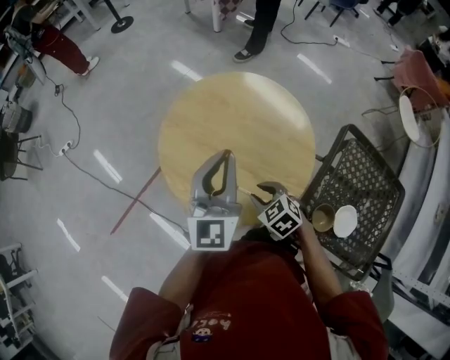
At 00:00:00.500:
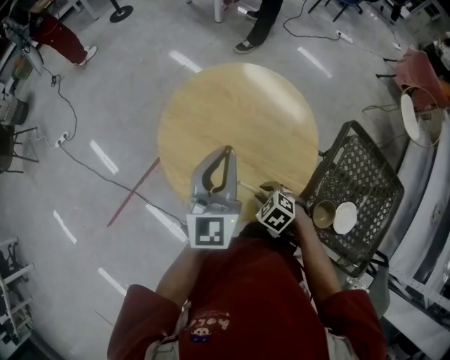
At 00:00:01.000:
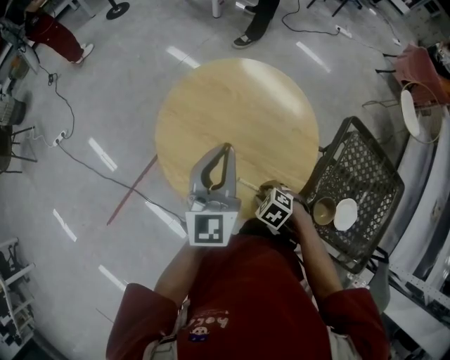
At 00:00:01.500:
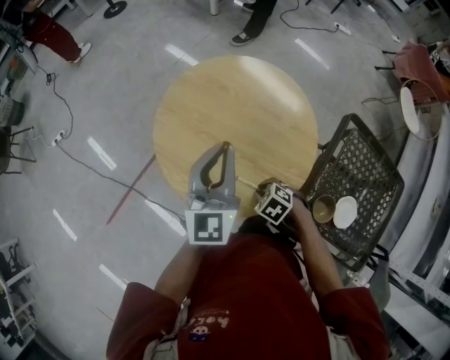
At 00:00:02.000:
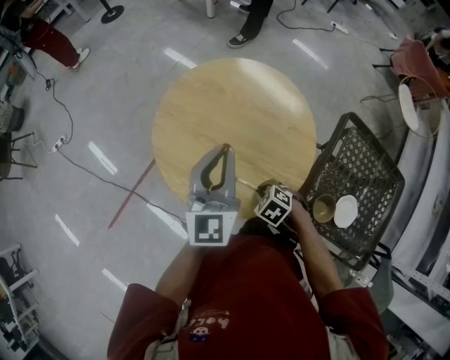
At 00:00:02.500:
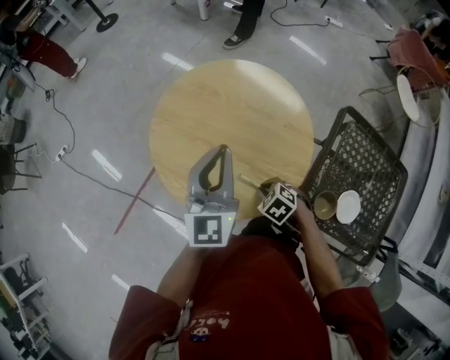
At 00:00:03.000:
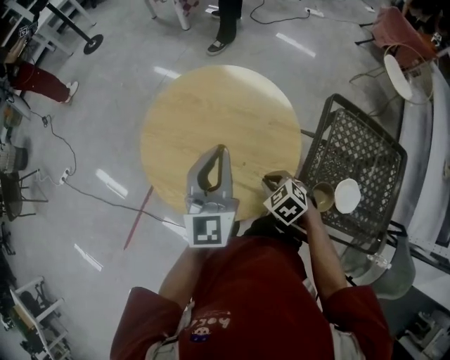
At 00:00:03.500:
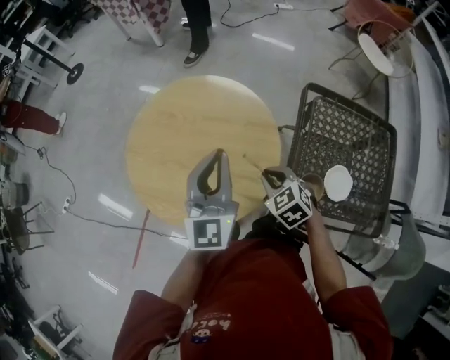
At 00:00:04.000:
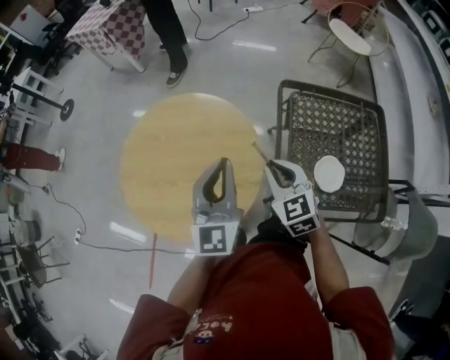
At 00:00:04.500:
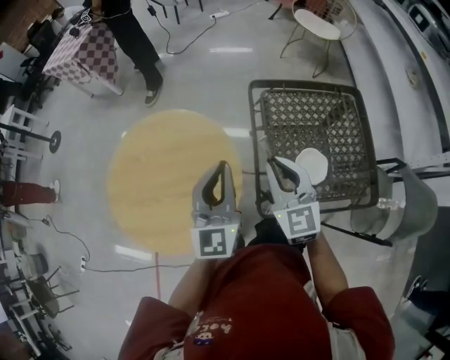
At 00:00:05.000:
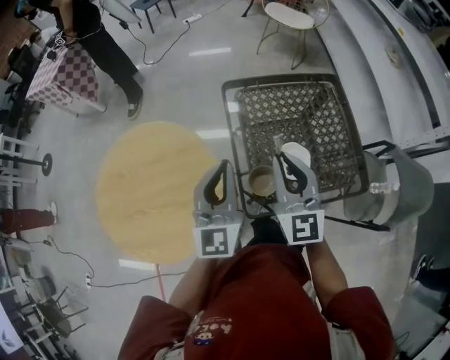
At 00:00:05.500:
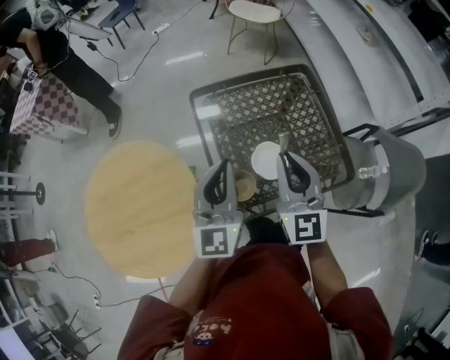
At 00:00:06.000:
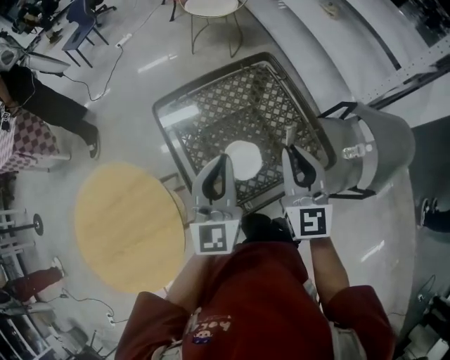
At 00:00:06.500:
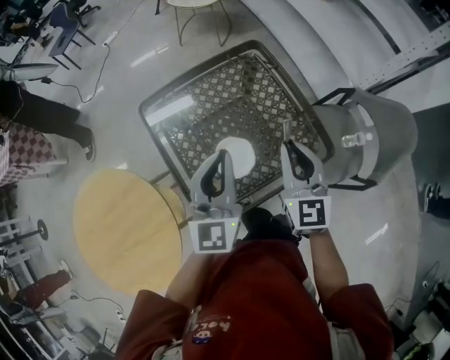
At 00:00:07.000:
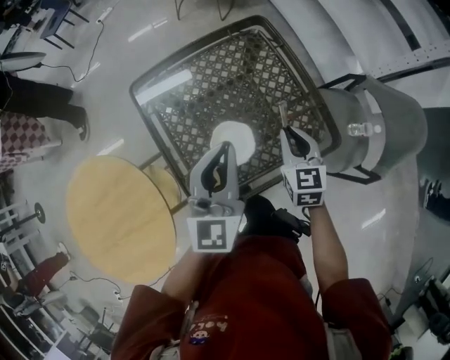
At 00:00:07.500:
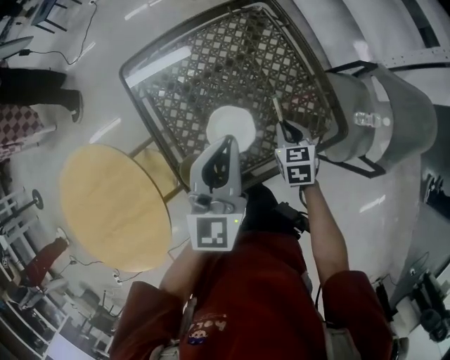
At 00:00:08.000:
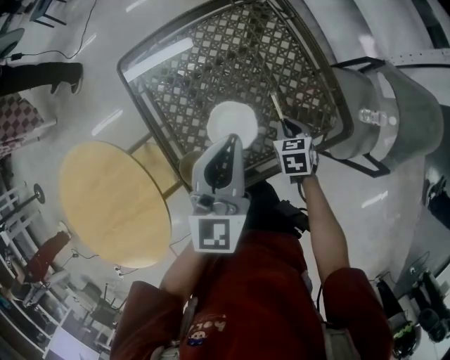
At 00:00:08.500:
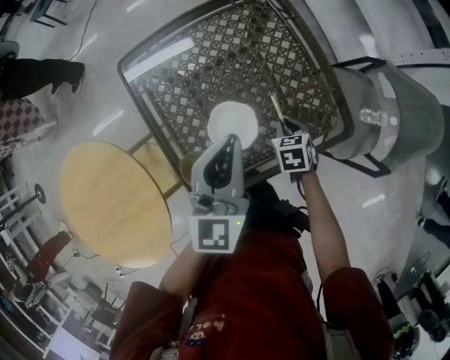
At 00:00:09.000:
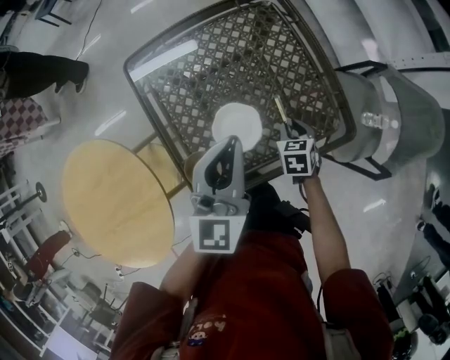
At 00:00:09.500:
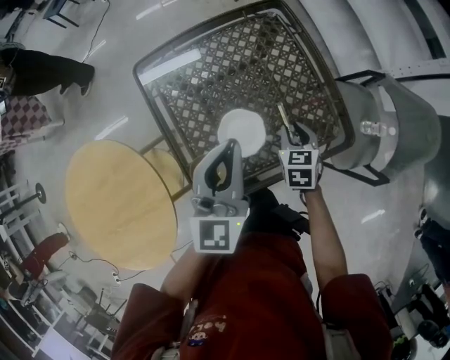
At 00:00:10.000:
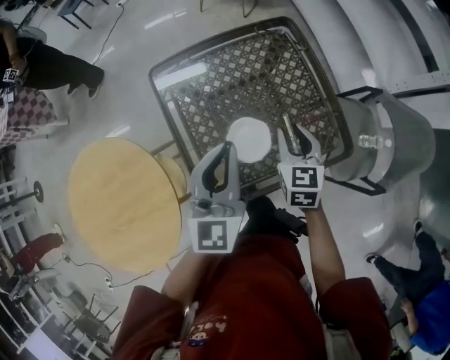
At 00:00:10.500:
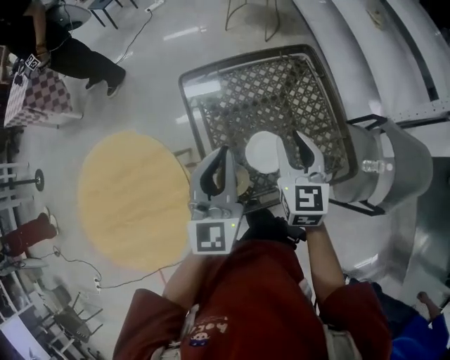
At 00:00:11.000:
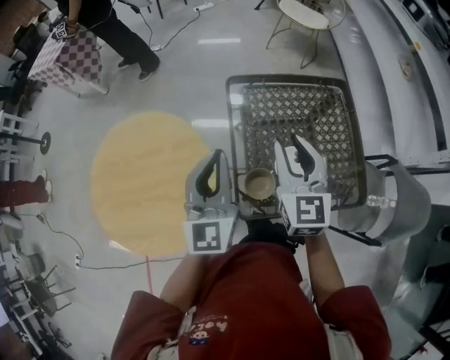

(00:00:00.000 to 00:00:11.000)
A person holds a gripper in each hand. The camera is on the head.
00:00:00.000 - 00:00:02.000: The right gripper goes approximately 5 cm downward.
00:00:02.000 - 00:00:03.500: The left gripper ends up some 15 cm from where it was. Meanwhile the right gripper shifts approximately 15 cm upward, and swivels about 40 degrees.
00:00:03.500 - 00:00:05.500: The left gripper changes place by roughly 30 cm, and turns by some 30 degrees. Meanwhile the right gripper moves approximately 40 cm, and points its fingers roughly 50 degrees further upward.
00:00:05.500 - 00:00:07.500: The left gripper moves to the right, downward and forward, some 20 cm. The right gripper goes roughly 35 cm downward and to the right, and tilts its fingers approximately 50 degrees downward.
00:00:07.500 - 00:00:09.000: There are only small adjustments of the grippers.
00:00:09.000 - 00:00:11.000: The right gripper is displaced upward by about 35 cm, and points its fingers roughly 50 degrees further upward. Meanwhile the left gripper shifts by roughly 25 cm, and turns by roughly 30 degrees.

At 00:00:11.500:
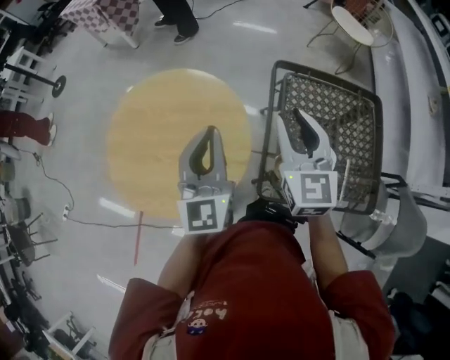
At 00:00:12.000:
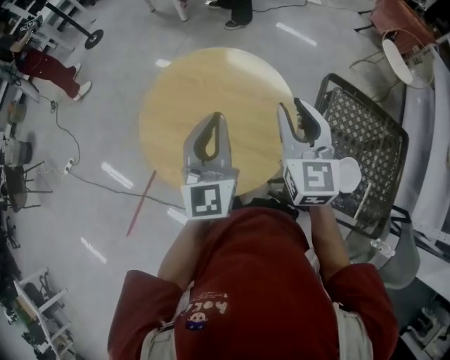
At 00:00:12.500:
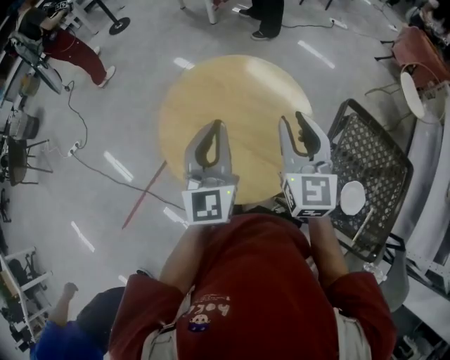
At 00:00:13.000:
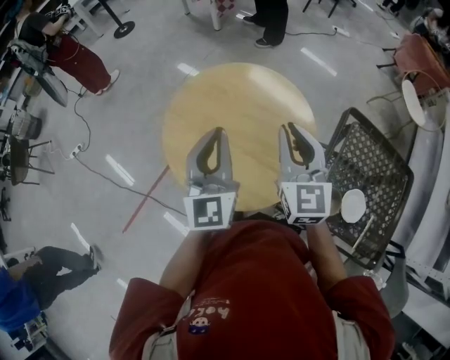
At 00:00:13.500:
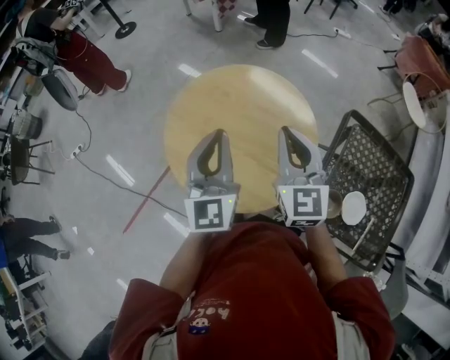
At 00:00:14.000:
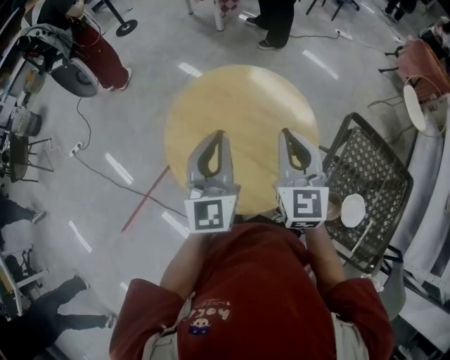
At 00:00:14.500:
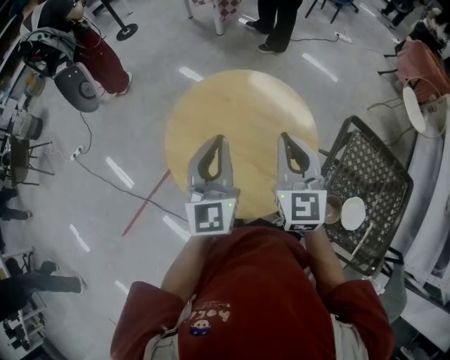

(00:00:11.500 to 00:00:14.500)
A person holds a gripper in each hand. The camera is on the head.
00:00:11.500 - 00:00:13.000: The two grippers go some 25 cm to the left. The right gripper swivels approximately 20 degrees; the left gripper turns by roughly 20 degrees.
00:00:13.000 - 00:00:14.500: The grippers make only small movements.

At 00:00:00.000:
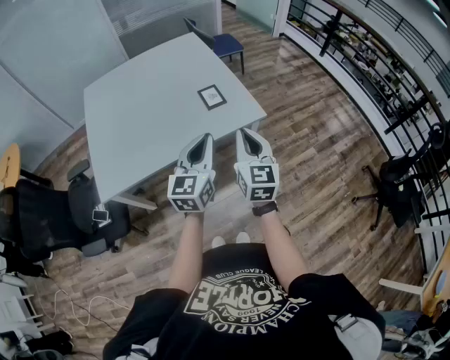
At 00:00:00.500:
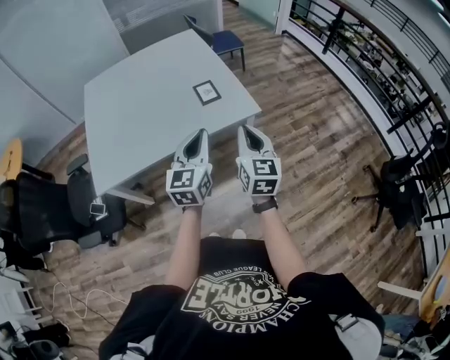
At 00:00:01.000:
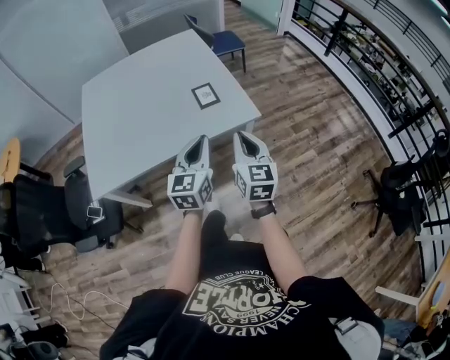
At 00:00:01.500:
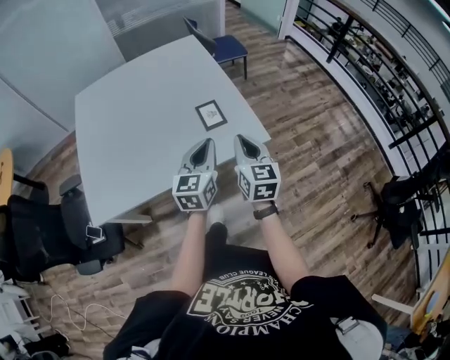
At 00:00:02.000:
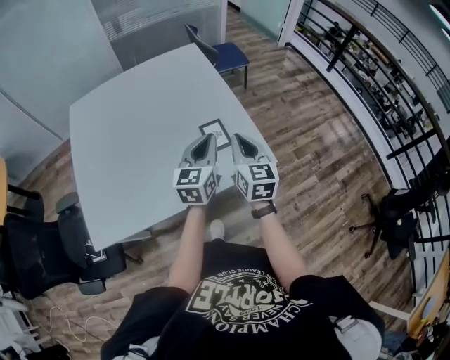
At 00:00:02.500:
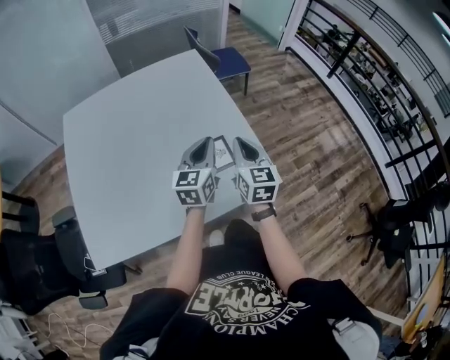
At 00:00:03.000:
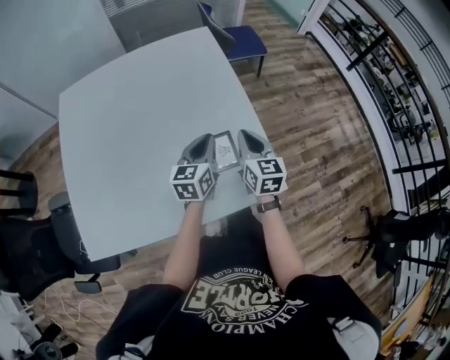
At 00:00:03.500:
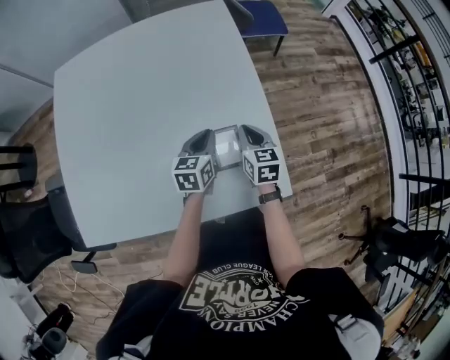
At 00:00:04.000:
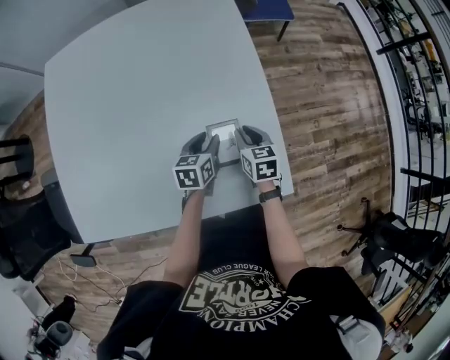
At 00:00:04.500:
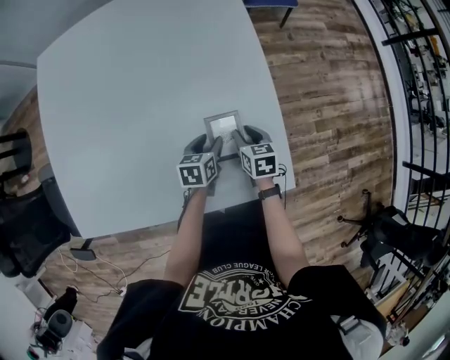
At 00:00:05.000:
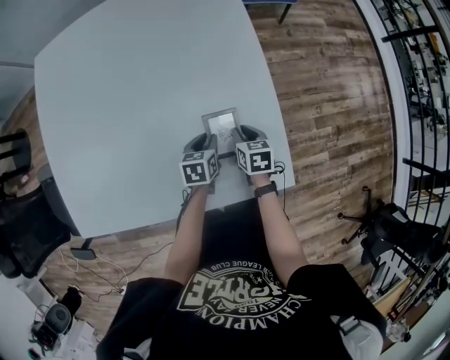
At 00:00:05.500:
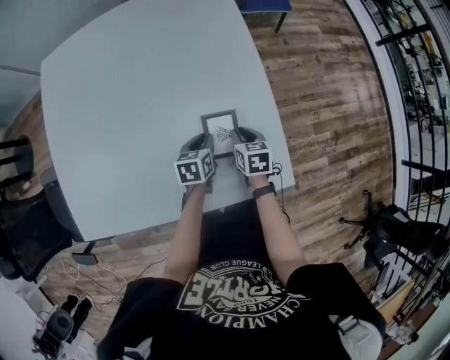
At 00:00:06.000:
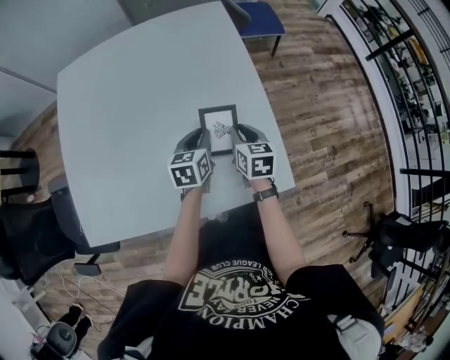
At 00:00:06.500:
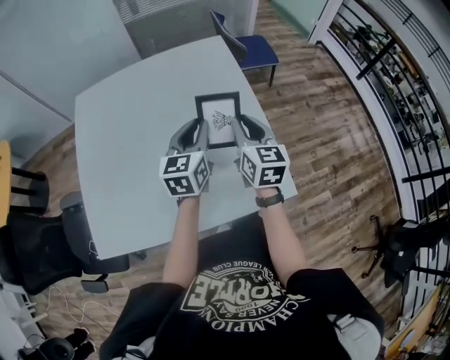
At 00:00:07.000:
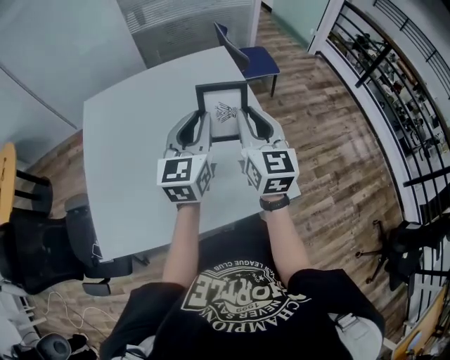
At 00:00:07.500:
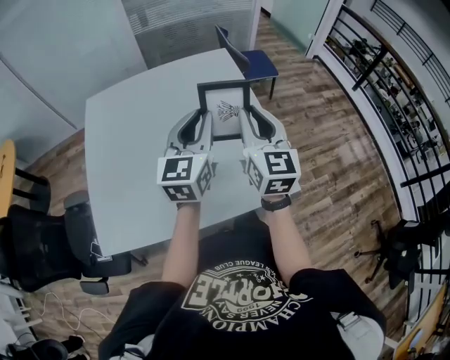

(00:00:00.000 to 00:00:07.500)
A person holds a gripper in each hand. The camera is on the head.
00:00:00.000 - 00:00:02.000: The grippers both shift forward by roughly 30 cm.
00:00:02.000 - 00:00:04.000: The left gripper goes some 40 cm downward and forward, tilts its fingers roughly 30 degrees downward, and opens its fingers. The right gripper goes about 40 cm forward and downward, points its fingers roughly 30 degrees further downward, and opens its fingers.
00:00:05.500 - 00:00:07.500: Both grippers move upward, roughly 40 cm. The right gripper tips its fingers upward by roughly 50 degrees. Meanwhile the left gripper tilts its fingers some 50 degrees upward.

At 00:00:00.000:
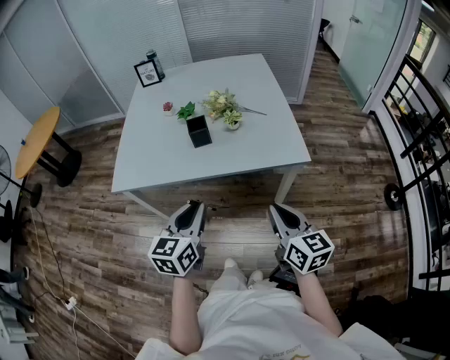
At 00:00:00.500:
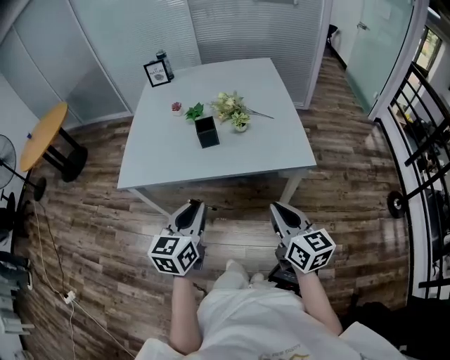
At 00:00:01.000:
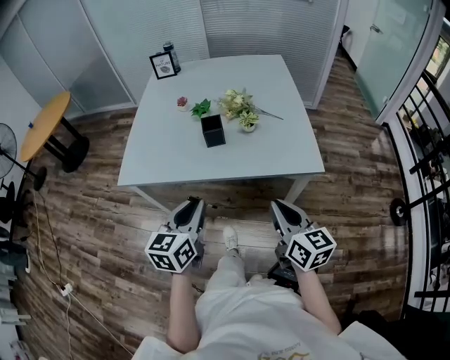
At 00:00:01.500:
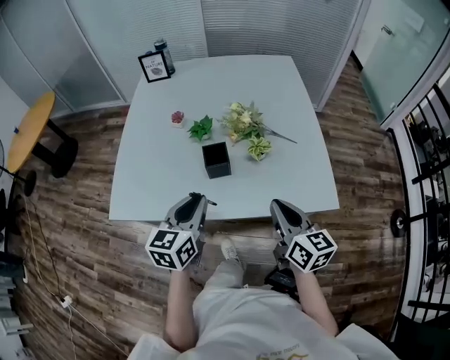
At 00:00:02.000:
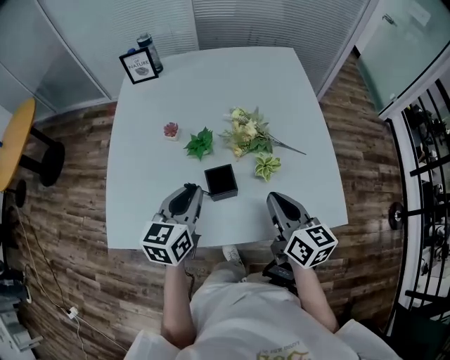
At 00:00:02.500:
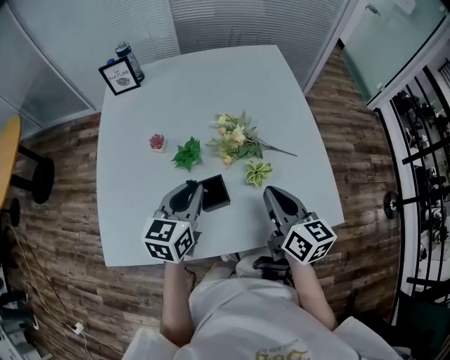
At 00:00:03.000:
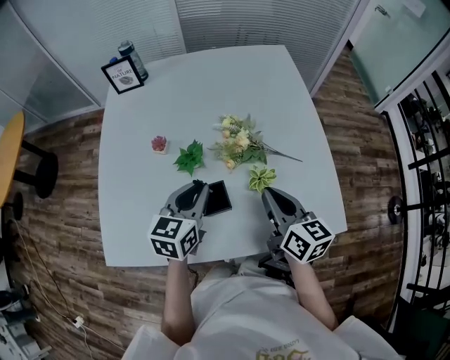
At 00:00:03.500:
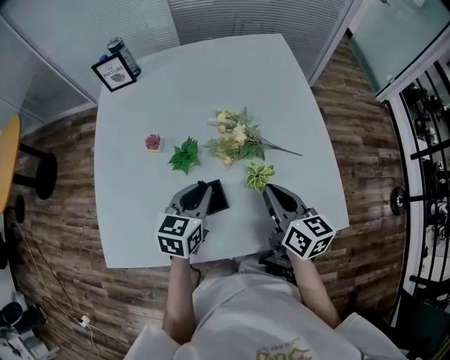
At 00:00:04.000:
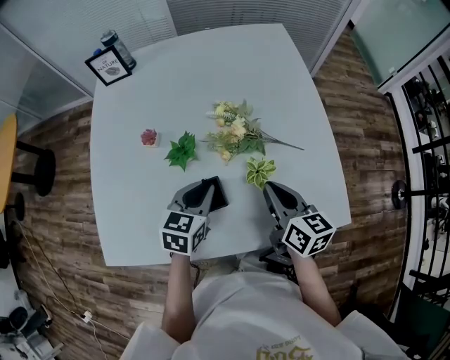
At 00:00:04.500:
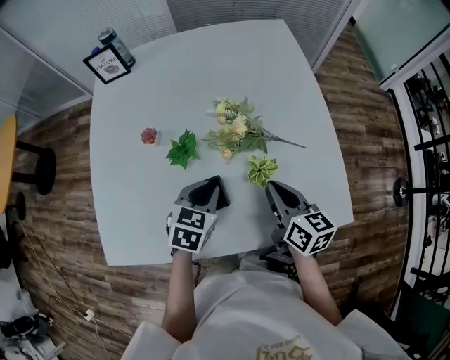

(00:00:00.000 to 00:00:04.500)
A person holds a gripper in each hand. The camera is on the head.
00:00:00.000 - 00:00:02.000: The grippers both shift forward by about 40 cm.
00:00:02.000 - 00:00:04.500: The right gripper is displaced forward and downward by roughly 10 cm; the left gripper goes approximately 15 cm downward, forward and to the right, and rotates about 30 degrees.
